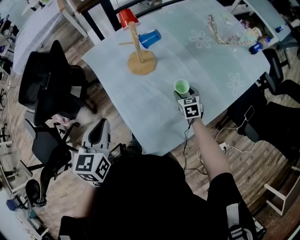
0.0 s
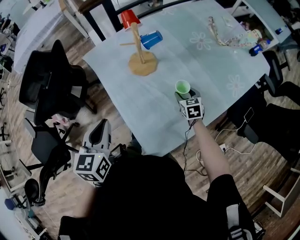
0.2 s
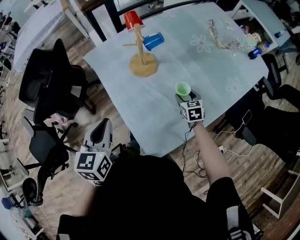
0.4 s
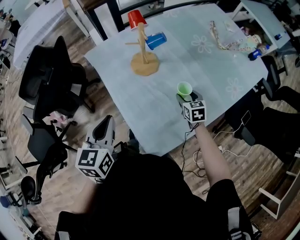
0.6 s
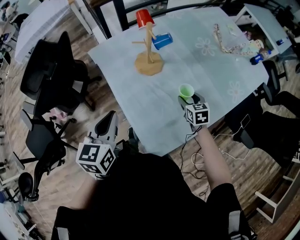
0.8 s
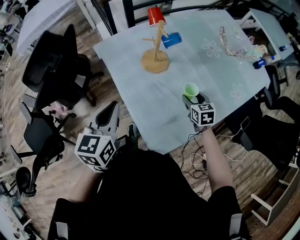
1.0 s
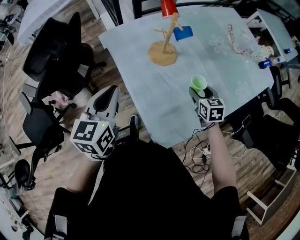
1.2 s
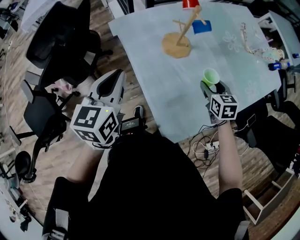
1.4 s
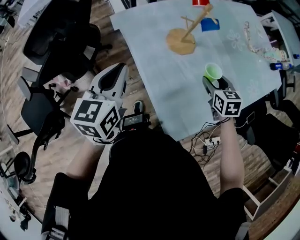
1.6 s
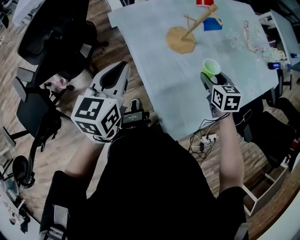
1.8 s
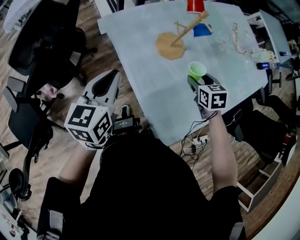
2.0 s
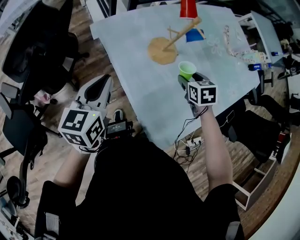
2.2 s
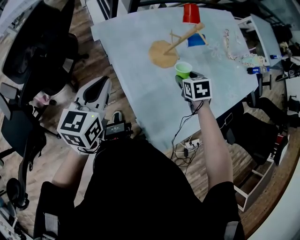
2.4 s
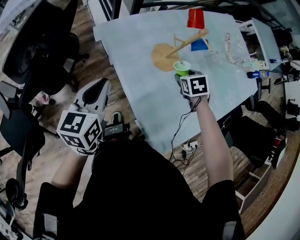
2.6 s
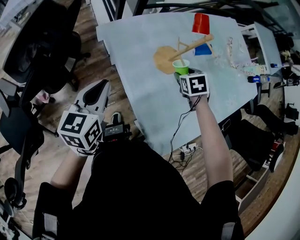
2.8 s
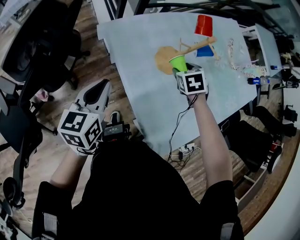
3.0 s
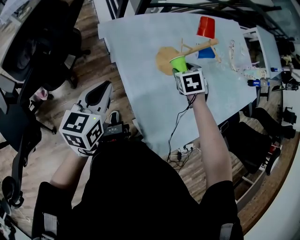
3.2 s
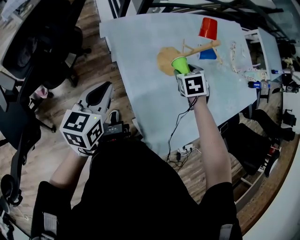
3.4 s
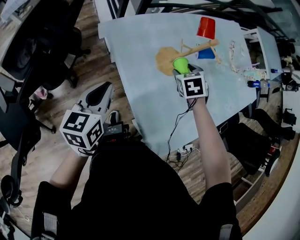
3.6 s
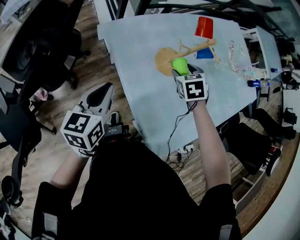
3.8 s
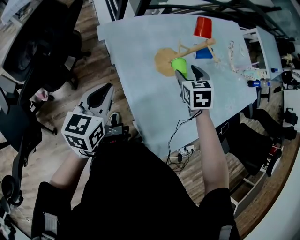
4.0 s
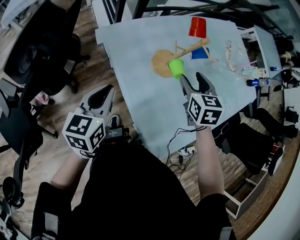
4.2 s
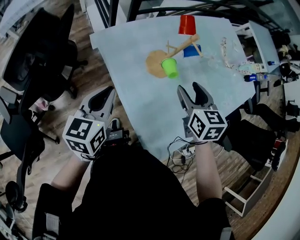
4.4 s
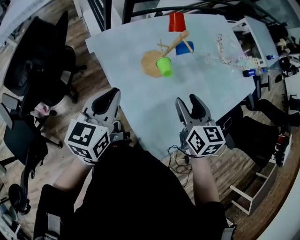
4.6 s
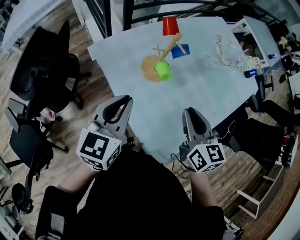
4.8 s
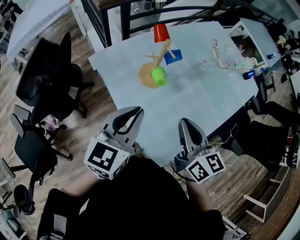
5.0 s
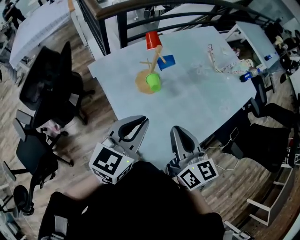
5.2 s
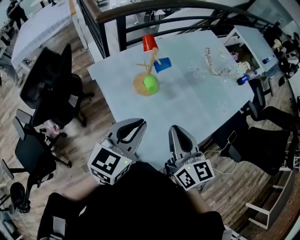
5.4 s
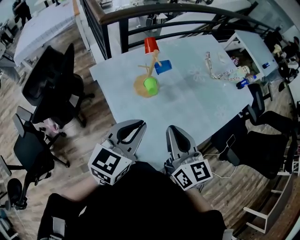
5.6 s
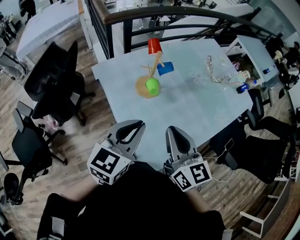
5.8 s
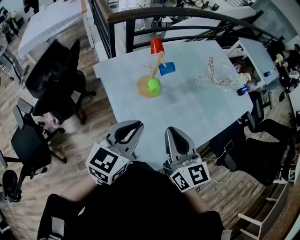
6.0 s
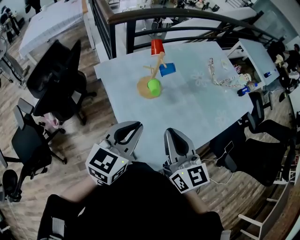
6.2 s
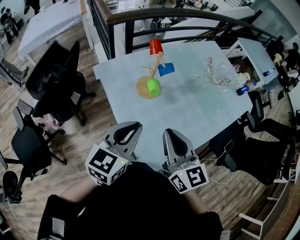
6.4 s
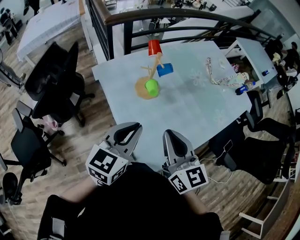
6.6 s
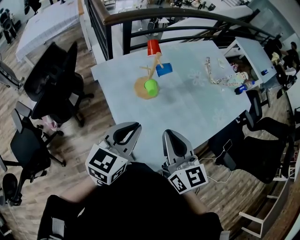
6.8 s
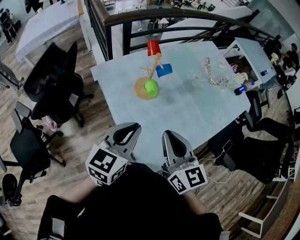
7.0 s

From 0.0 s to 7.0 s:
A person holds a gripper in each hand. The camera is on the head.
From 0.0 s to 1.4 s: The right gripper heads upward and to the left, covering approximately 15 cm; the left gripper heads to the left and forward, covering approximately 10 cm.
From 1.4 s to 2.8 s: The left gripper travels to the left, downward and forward by roughly 15 cm. The right gripper travels to the left and forward by approximately 20 cm, and turns by roughly 30 degrees.
From 2.8 s to 4.2 s: The right gripper shifts roughly 10 cm upward, and rotates roughly 30 degrees.
From 4.2 s to 5.6 s: The left gripper is displaced to the right and upward by approximately 30 cm, and changes its angle by approximately 20 degrees, while the right gripper moves backward, upward and to the right, roughly 25 cm, tips its fingers upward by roughly 30 degrees, and closes its fingers.
From 5.6 s to 7.0 s: There are only small adjustments of the grippers.

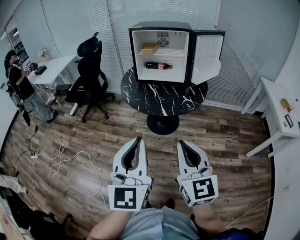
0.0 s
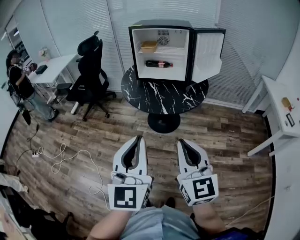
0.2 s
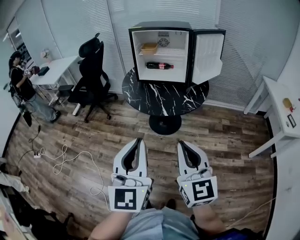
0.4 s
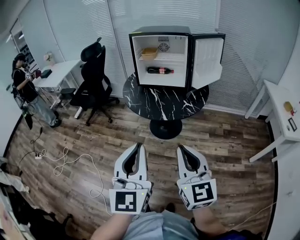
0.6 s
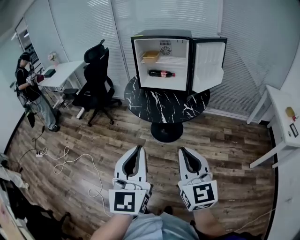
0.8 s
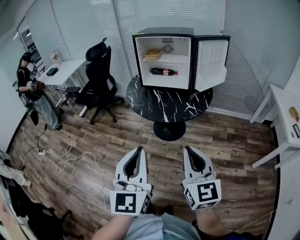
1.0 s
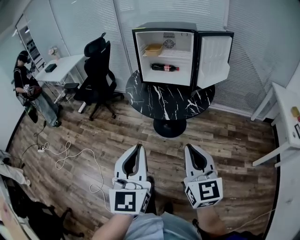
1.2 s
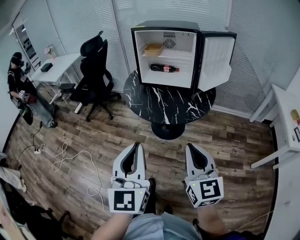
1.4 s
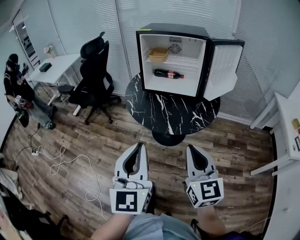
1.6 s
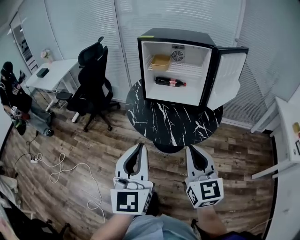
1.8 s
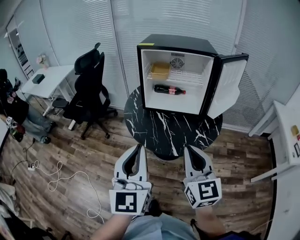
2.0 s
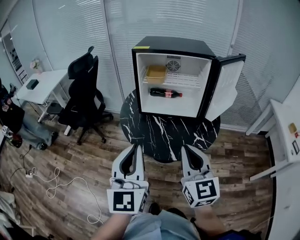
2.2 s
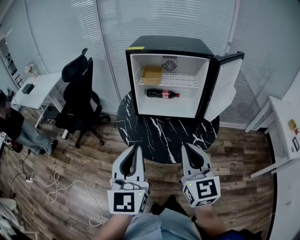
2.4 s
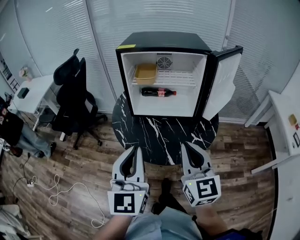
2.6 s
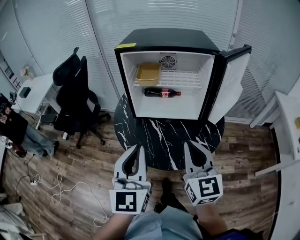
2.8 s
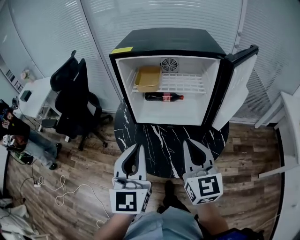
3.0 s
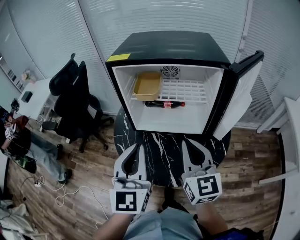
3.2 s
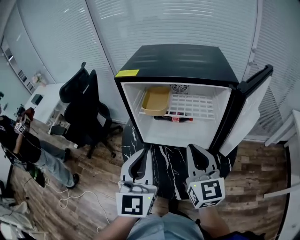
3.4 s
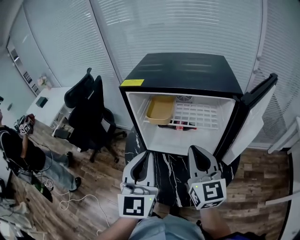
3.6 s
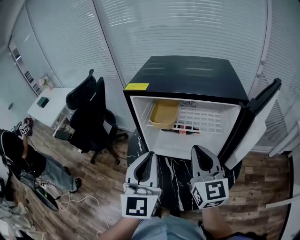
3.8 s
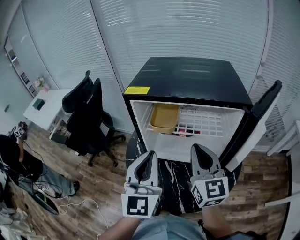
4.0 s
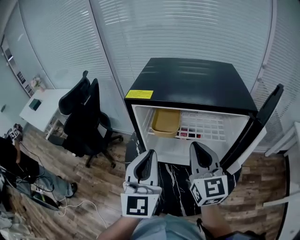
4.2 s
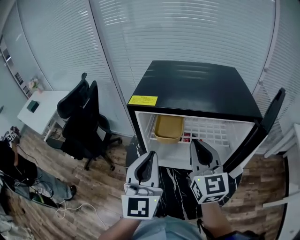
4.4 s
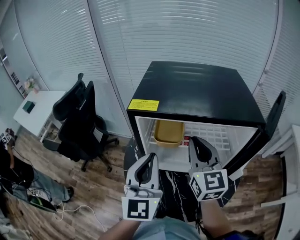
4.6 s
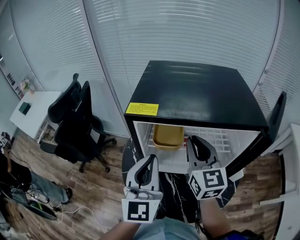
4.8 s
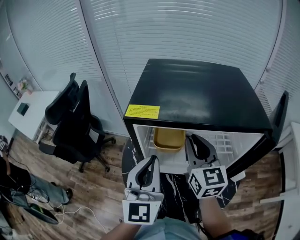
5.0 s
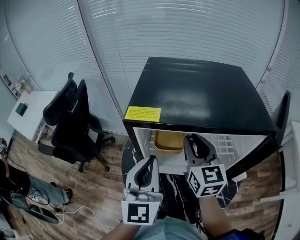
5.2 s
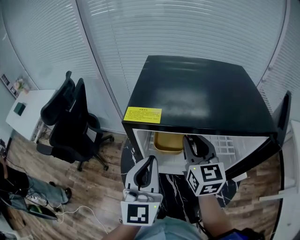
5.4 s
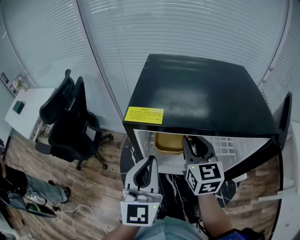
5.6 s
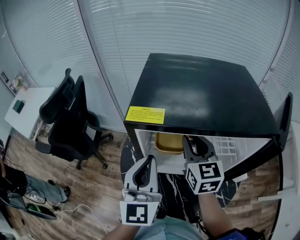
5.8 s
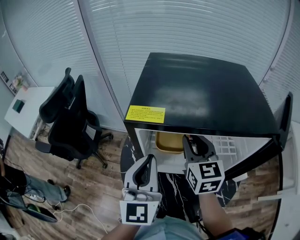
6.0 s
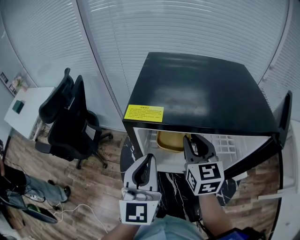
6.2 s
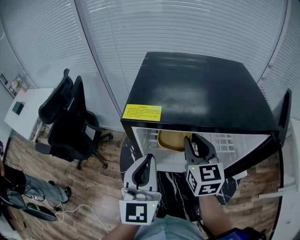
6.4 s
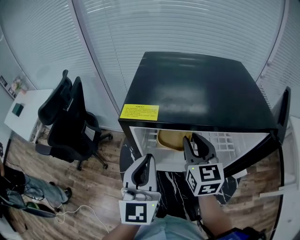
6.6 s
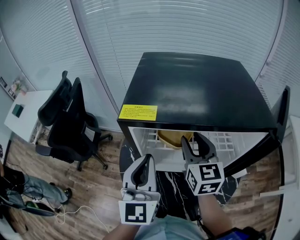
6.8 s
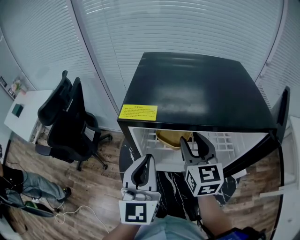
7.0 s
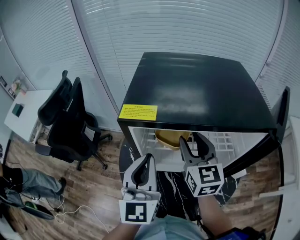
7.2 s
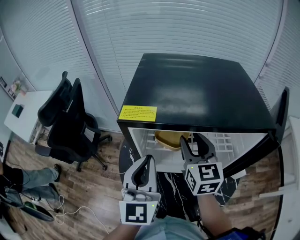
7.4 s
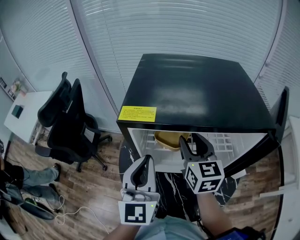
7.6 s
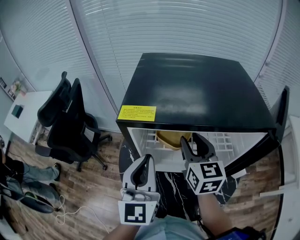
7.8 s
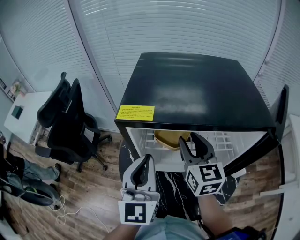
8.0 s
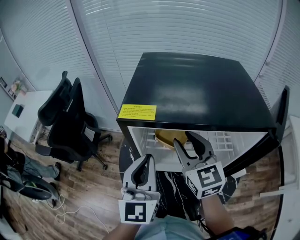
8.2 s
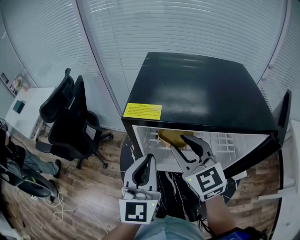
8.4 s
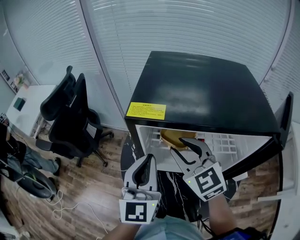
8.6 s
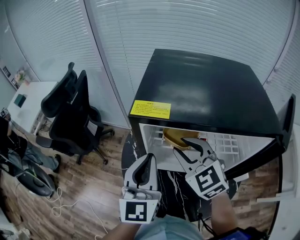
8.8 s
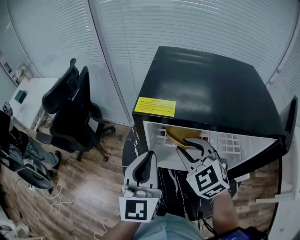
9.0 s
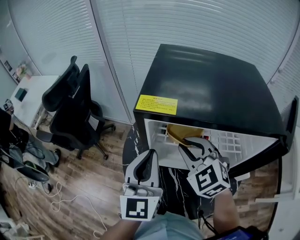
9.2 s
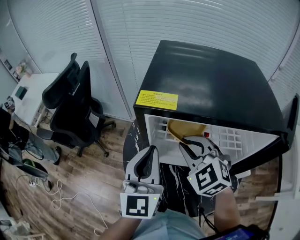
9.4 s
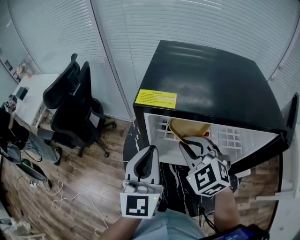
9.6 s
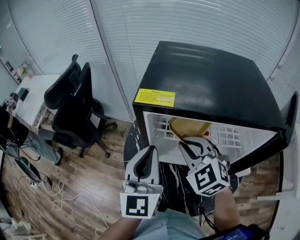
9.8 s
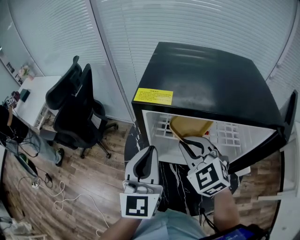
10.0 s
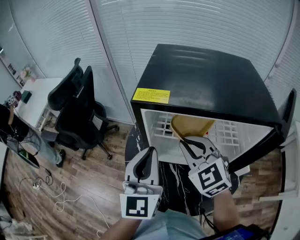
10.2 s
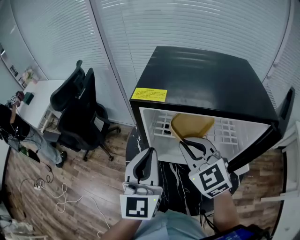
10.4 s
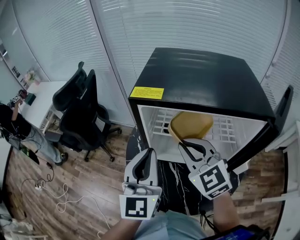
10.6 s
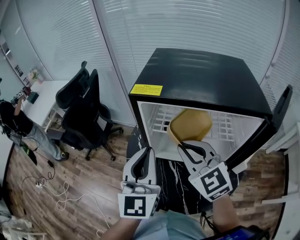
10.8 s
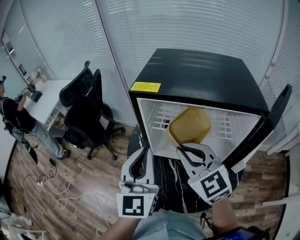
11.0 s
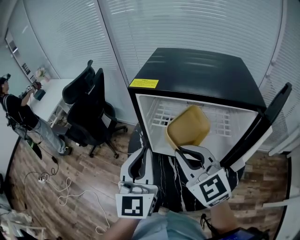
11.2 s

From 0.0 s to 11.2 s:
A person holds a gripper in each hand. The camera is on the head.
From 0.0 s to 1.6 s: The two grippers go approximately 15 cm forward.
From 1.6 s to 3.2 s: The two grippers go approximately 35 cm forward.
From 3.2 s to 4.8 s: Both grippers move forward, approximately 20 cm.
From 4.8 s to 6.4 s: The right gripper ends up approximately 5 cm from where it was.
From 6.4 s to 8.0 s: The grippers make only small movements.
From 8.0 s to 9.6 s: The right gripper moves to the left, approximately 5 cm, rotates around the line of its fingers by some 40 degrees, counterclockwise from behind, and closes.
From 9.6 s to 11.2 s: The right gripper heads backward and upward, covering about 15 cm, and changes its angle by some 30 degrees. Meanwhile the left gripper is displaced backward by about 10 cm.

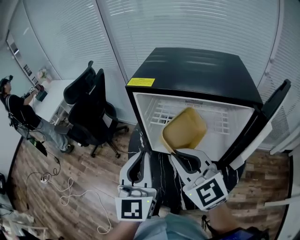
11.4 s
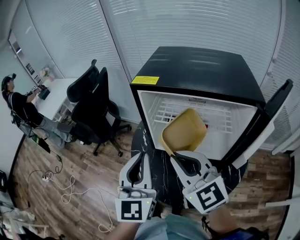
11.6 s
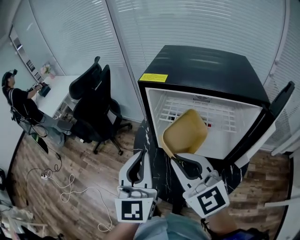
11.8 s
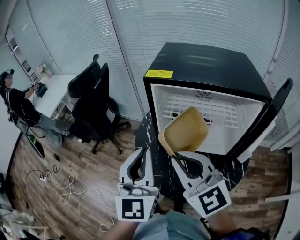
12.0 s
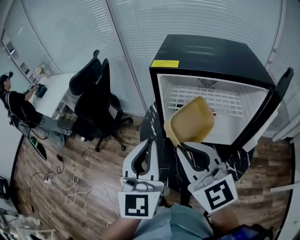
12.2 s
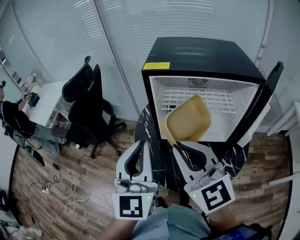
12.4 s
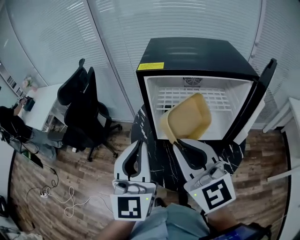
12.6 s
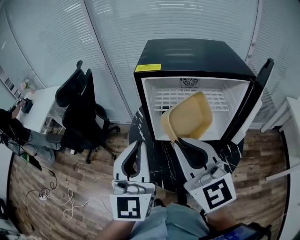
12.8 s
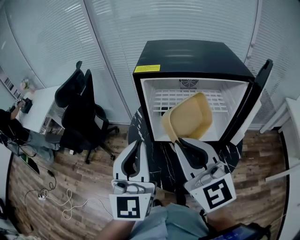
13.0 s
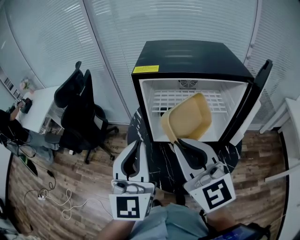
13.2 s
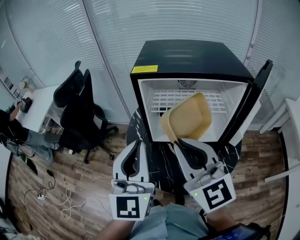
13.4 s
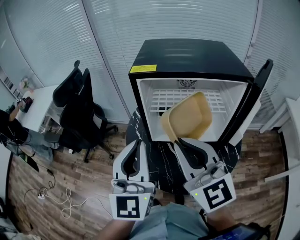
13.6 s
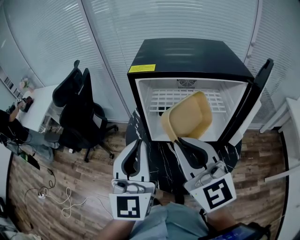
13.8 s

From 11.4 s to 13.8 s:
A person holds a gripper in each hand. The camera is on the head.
From 11.4 s to 12.6 s: The left gripper moves to the left, some 10 cm. Meanwhile the right gripper travels to the left and upward by roughly 10 cm, and turns by about 20 degrees.
From 12.6 s to 13.8 s: The grippers stay close to where they were, moving slightly.

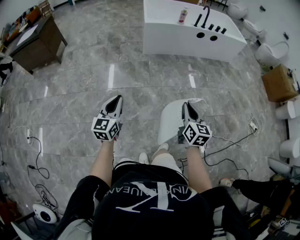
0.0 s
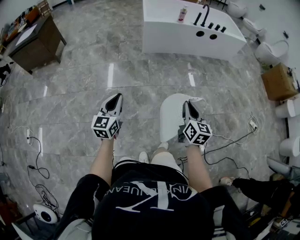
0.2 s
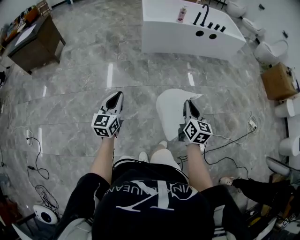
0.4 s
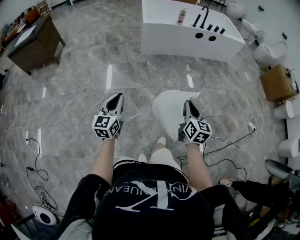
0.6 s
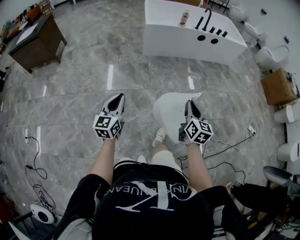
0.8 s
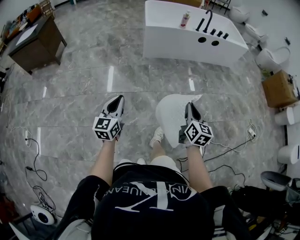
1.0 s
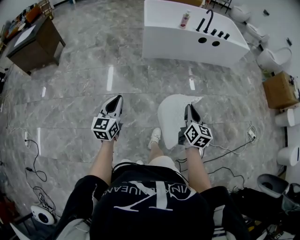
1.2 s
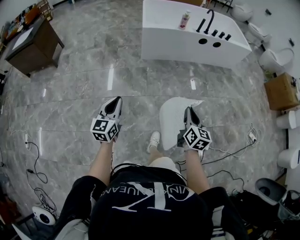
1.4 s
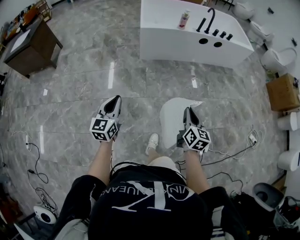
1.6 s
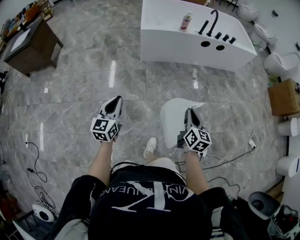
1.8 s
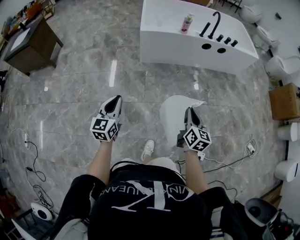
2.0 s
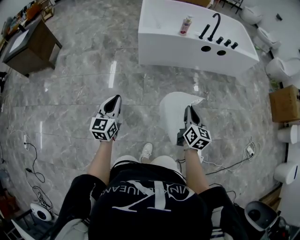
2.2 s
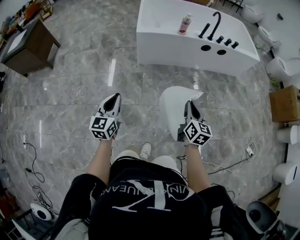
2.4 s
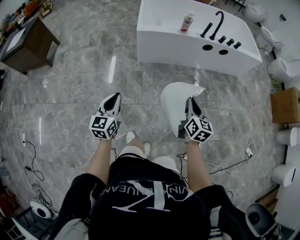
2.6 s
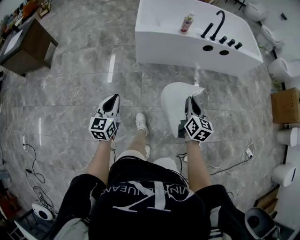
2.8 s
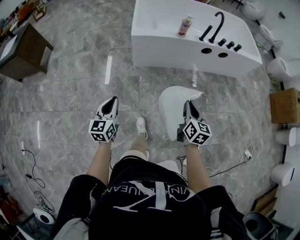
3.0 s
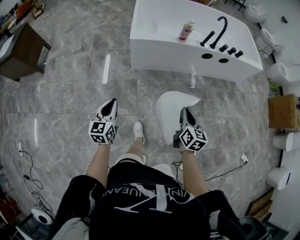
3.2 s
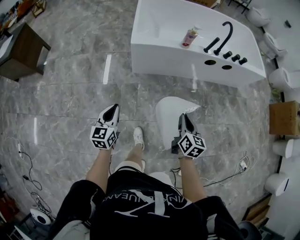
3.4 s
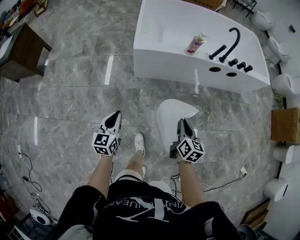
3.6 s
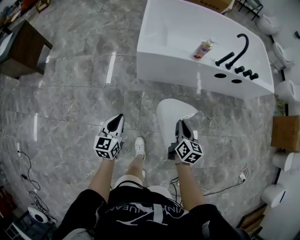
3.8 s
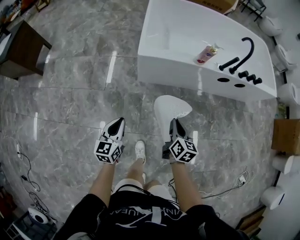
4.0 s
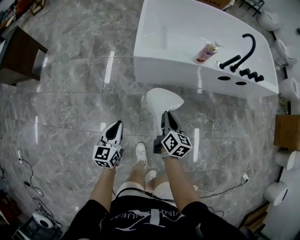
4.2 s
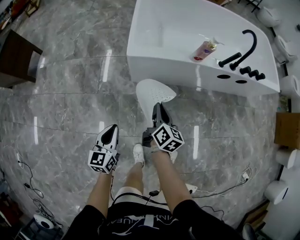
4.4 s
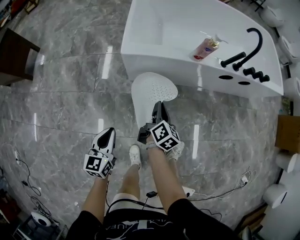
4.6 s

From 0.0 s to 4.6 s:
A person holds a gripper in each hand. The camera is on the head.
From 0.0 s to 1.6 s: The two grippers go approximately 20 cm forward.
From 1.6 s to 3.0 s: Both grippers move forward, some 30 cm.
From 3.0 s to 4.6 s: The grippers both shift forward and downward by some 35 cm. The right gripper swivels approximately 30 degrees.
